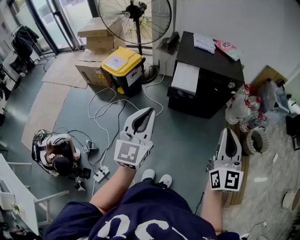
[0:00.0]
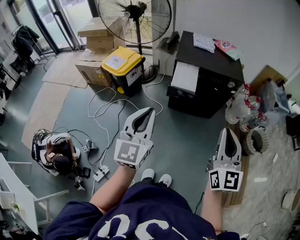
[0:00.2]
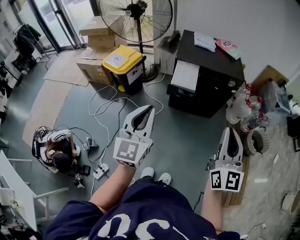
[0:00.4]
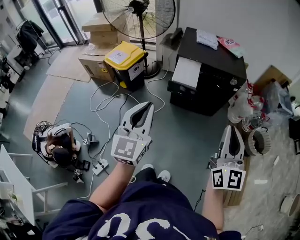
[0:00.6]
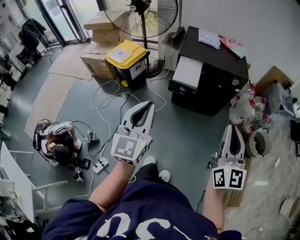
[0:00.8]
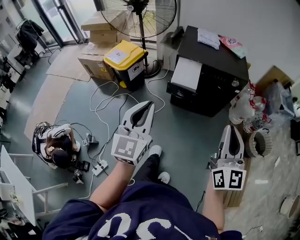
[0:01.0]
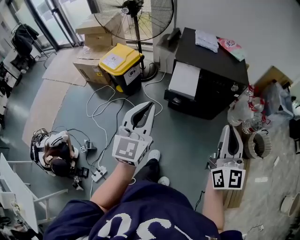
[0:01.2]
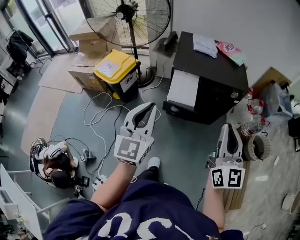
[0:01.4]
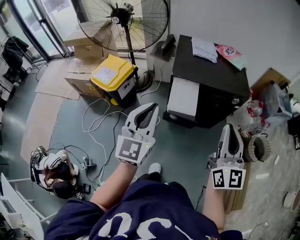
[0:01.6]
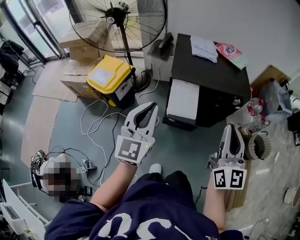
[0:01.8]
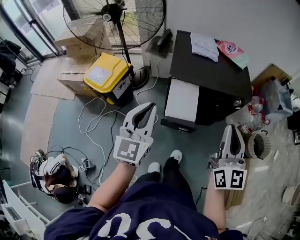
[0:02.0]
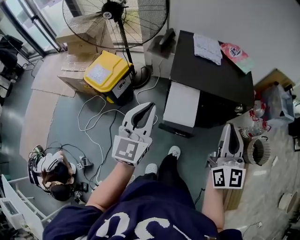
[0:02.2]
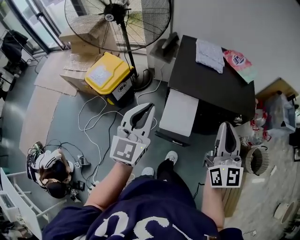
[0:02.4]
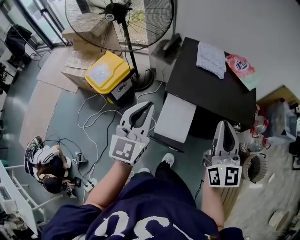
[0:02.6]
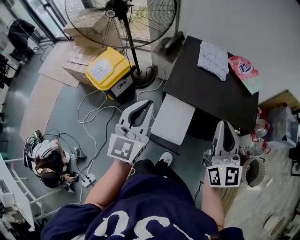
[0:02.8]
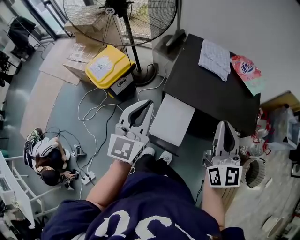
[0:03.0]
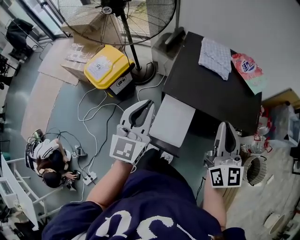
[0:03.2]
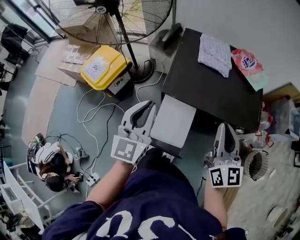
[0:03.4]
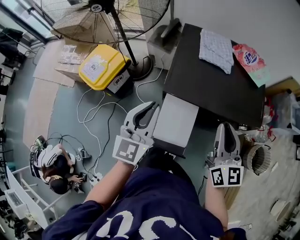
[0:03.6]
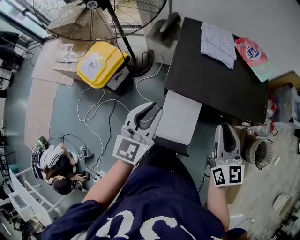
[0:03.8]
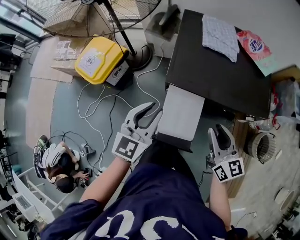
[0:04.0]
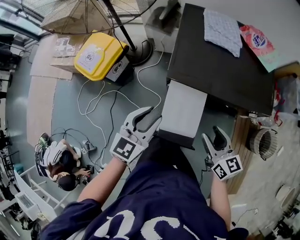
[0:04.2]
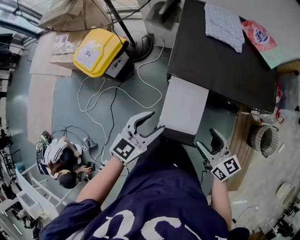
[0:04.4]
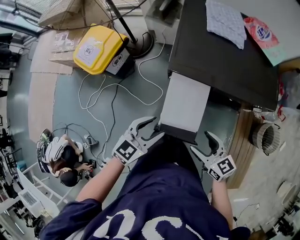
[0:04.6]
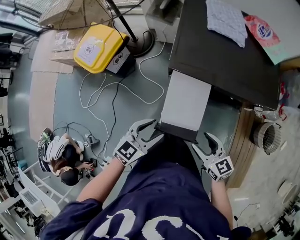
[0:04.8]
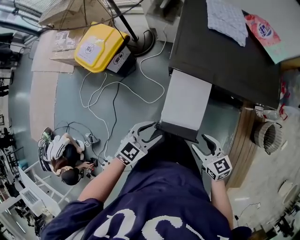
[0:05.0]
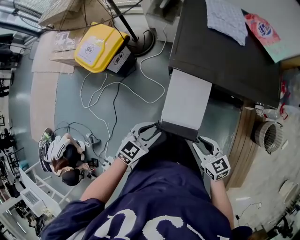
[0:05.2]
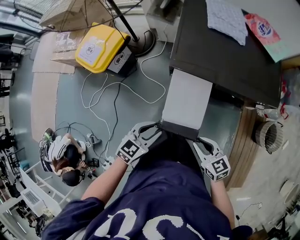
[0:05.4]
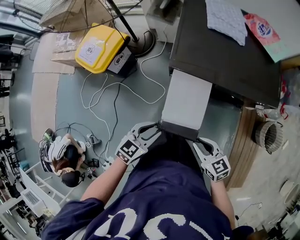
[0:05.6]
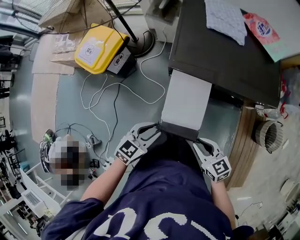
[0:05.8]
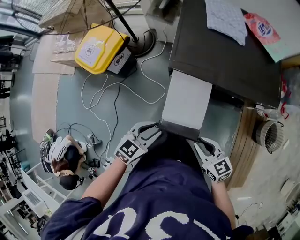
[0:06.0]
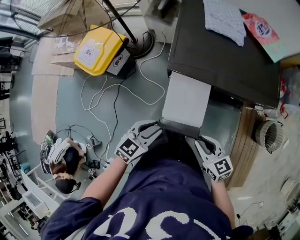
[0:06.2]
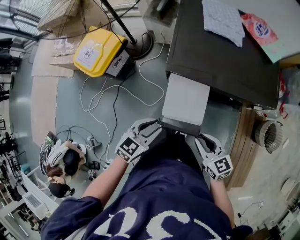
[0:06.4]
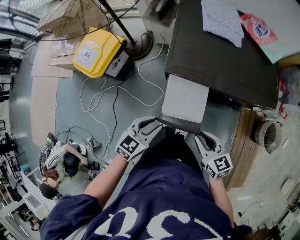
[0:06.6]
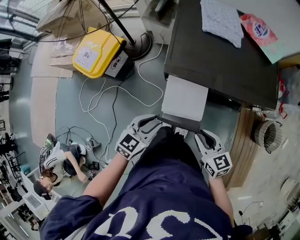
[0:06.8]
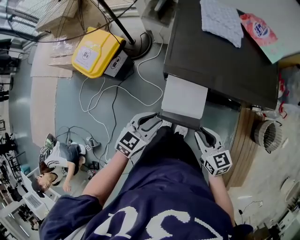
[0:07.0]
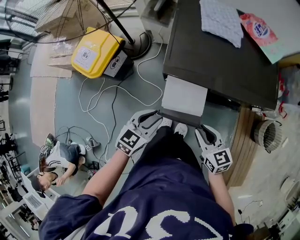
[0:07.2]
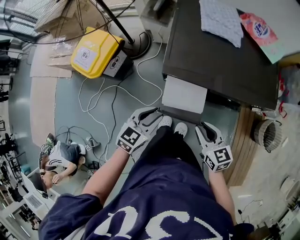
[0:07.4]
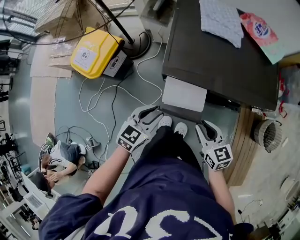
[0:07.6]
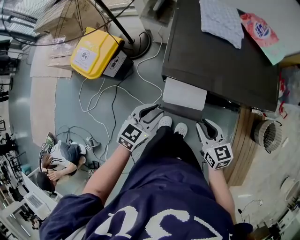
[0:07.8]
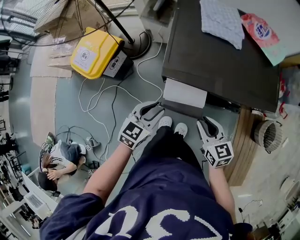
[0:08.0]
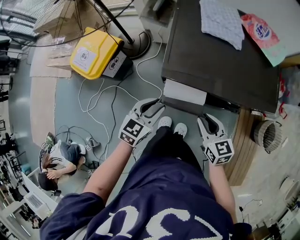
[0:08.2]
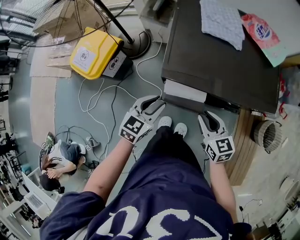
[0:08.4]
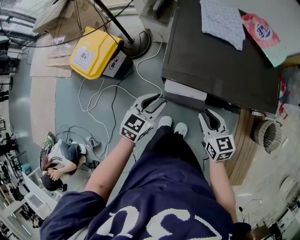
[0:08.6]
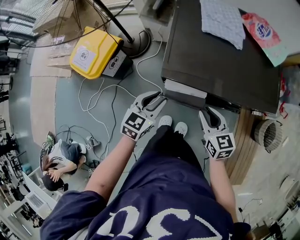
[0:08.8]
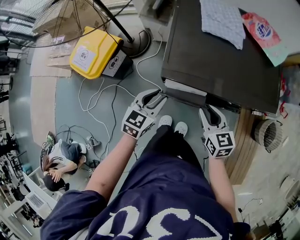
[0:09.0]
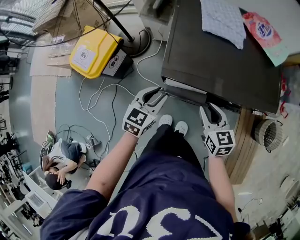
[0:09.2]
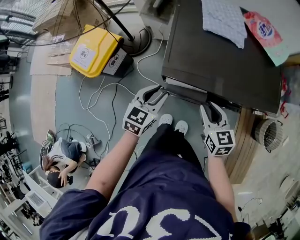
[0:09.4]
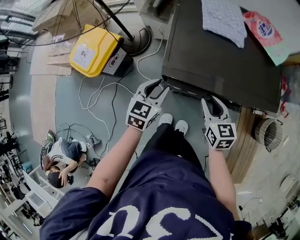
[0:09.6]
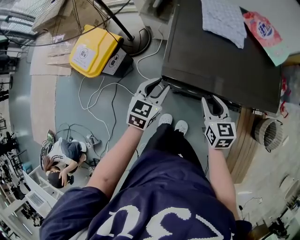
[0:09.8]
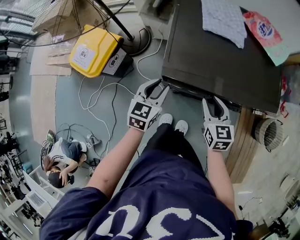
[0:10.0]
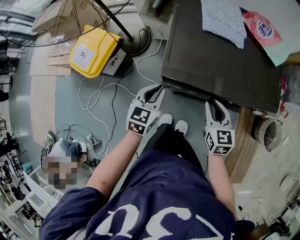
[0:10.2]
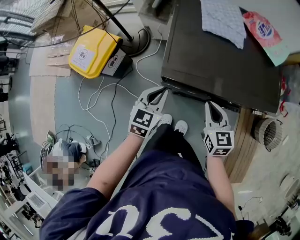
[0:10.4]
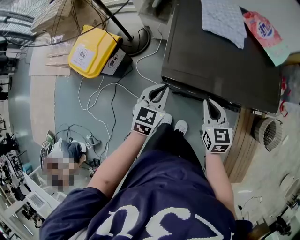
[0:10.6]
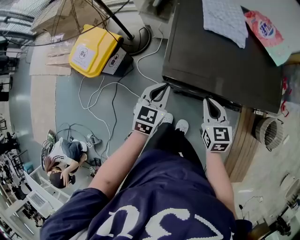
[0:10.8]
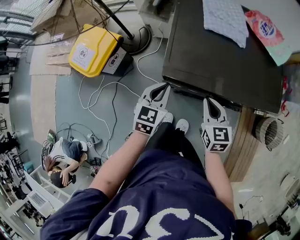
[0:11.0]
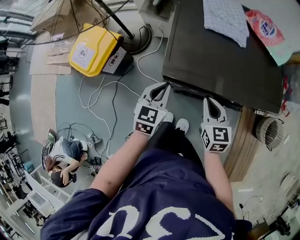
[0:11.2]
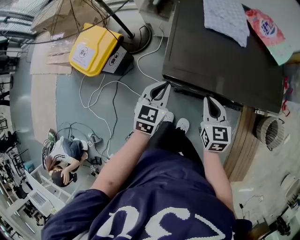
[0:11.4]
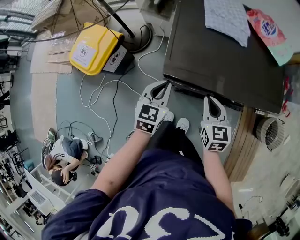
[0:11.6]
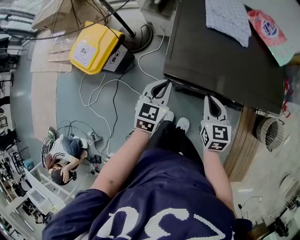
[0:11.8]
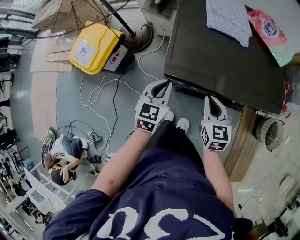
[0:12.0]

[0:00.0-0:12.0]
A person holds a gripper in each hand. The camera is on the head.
0:00.0 to 0:01.6: Both grippers travel together forward, some 25 cm.
0:01.6 to 0:03.0: The two grippers go some 30 cm forward.
0:03.0 to 0:04.4: Both grippers move downward, about 20 cm. The right gripper turns by approximately 40 degrees, and opens its fingers, while the left gripper rotates approximately 40 degrees, and opens its fingers.
0:04.4 to 0:06.0: The right gripper heads backward and downward, covering about 10 cm, and closes up. Meanwhile the left gripper heads downward and backward, covering some 10 cm, and closes up.
0:06.0 to 0:07.6: Both grippers move forward, roughly 10 cm.
0:07.6 to 0:09.0: Both grippers move forward, about 10 cm.
0:09.0 to 0:10.4: The left gripper closes its fingers.
0:10.4 to 0:12.0: The grippers make only small movements.

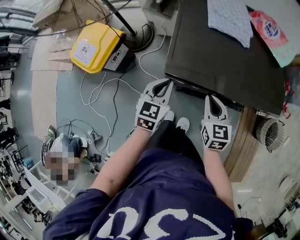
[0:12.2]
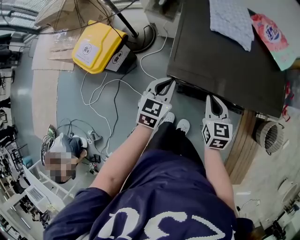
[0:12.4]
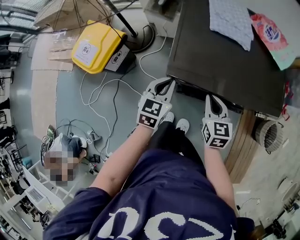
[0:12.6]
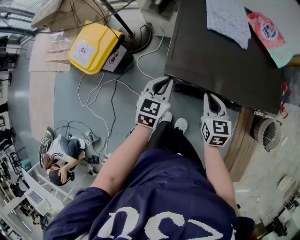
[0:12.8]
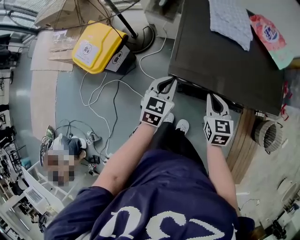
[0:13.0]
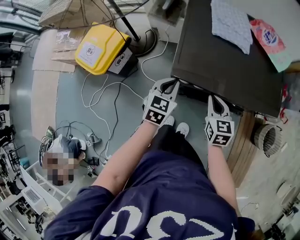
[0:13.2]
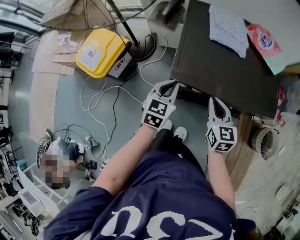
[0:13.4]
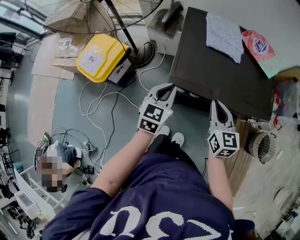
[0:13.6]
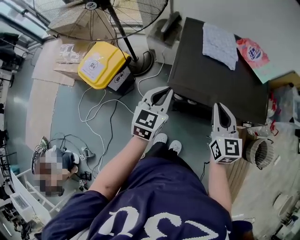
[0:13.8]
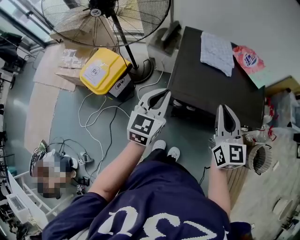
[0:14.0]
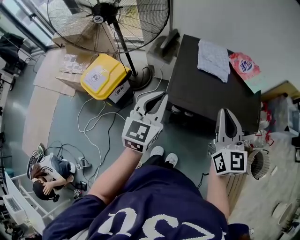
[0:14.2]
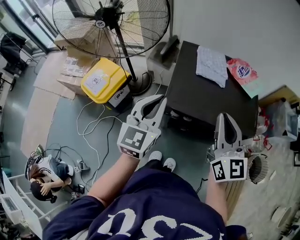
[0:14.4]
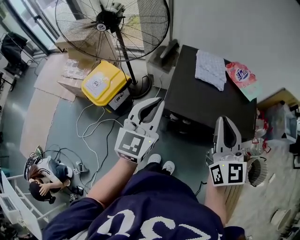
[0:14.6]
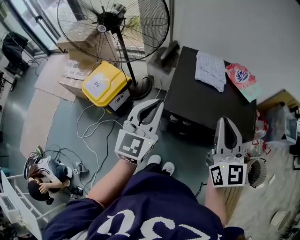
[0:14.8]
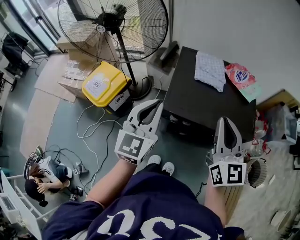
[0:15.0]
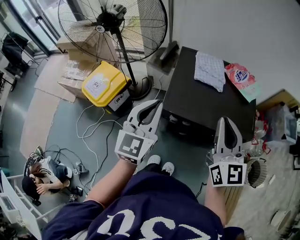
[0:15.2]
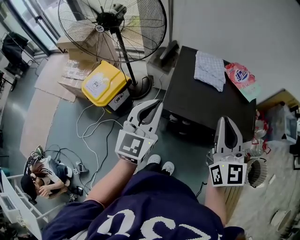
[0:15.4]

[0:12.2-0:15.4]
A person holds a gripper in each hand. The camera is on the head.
0:12.2 to 0:13.8: The grippers both shift upward by approximately 15 cm.
0:13.8 to 0:15.4: Both grippers move upward, roughly 15 cm.

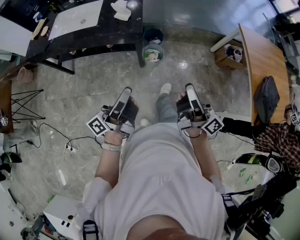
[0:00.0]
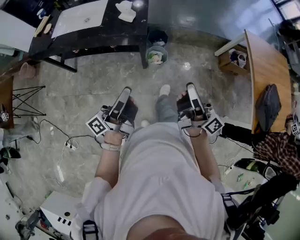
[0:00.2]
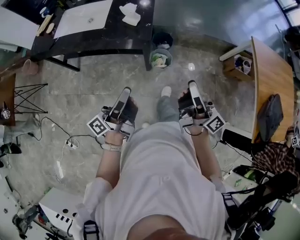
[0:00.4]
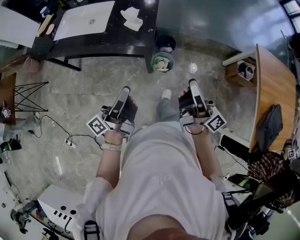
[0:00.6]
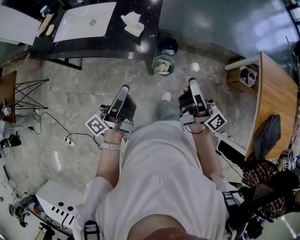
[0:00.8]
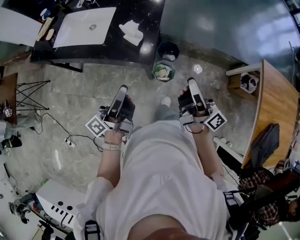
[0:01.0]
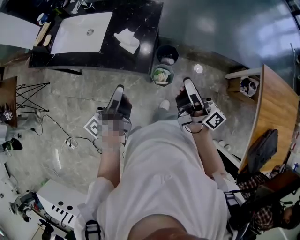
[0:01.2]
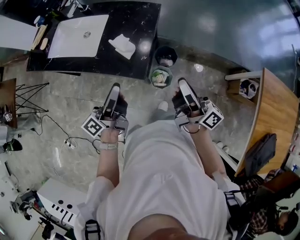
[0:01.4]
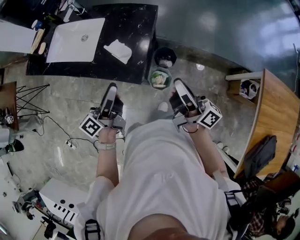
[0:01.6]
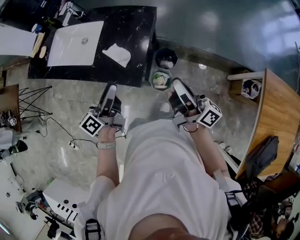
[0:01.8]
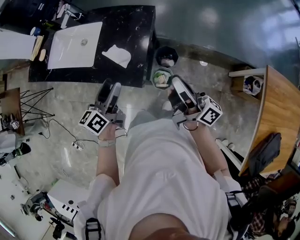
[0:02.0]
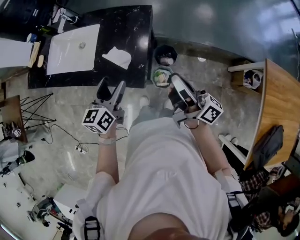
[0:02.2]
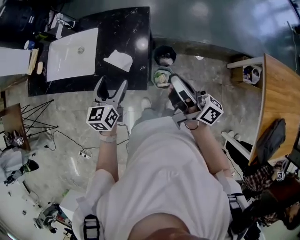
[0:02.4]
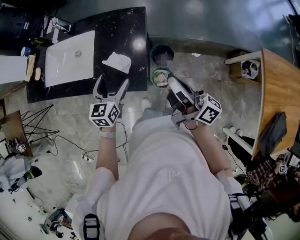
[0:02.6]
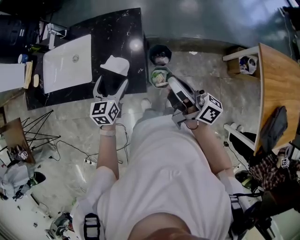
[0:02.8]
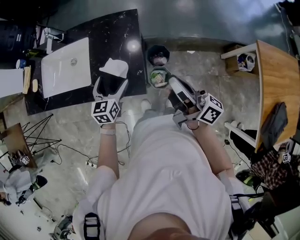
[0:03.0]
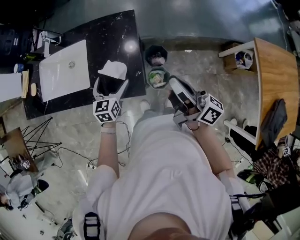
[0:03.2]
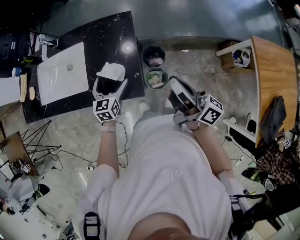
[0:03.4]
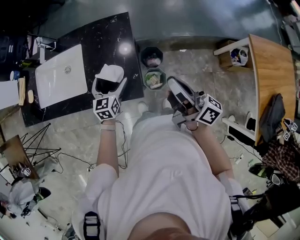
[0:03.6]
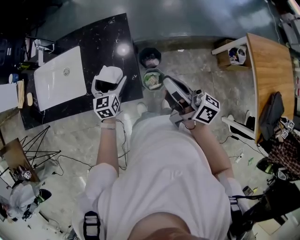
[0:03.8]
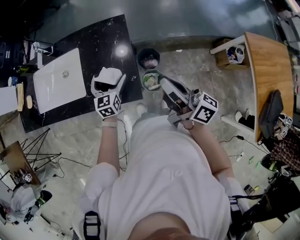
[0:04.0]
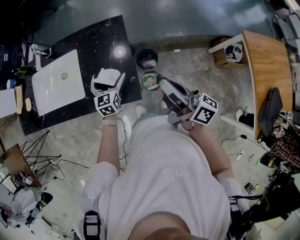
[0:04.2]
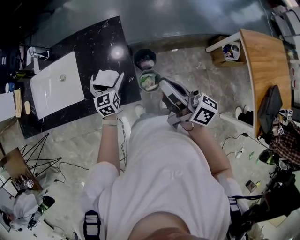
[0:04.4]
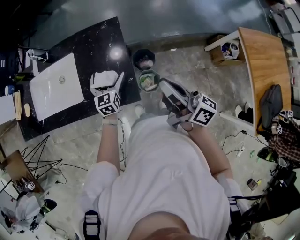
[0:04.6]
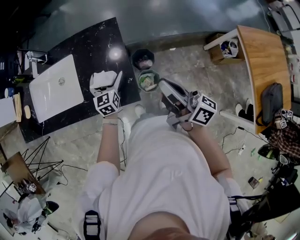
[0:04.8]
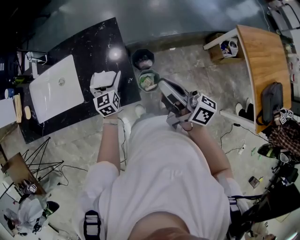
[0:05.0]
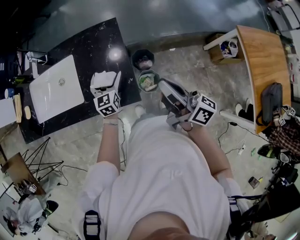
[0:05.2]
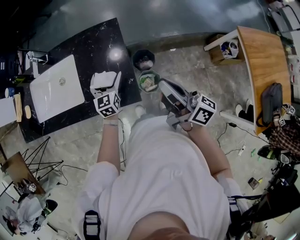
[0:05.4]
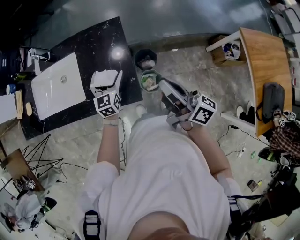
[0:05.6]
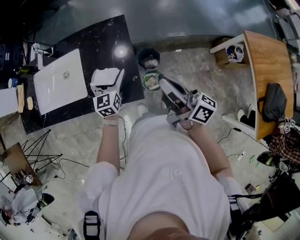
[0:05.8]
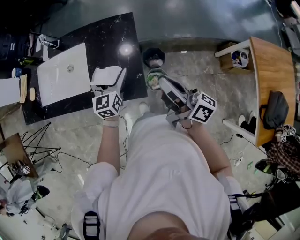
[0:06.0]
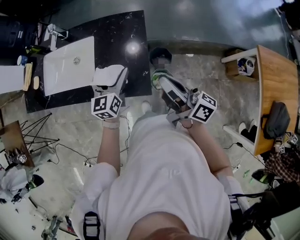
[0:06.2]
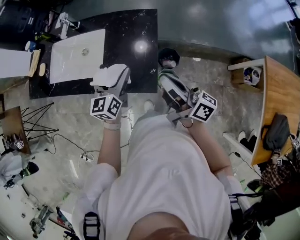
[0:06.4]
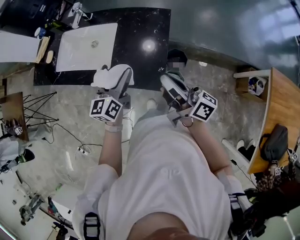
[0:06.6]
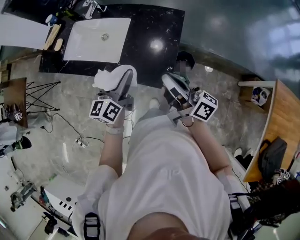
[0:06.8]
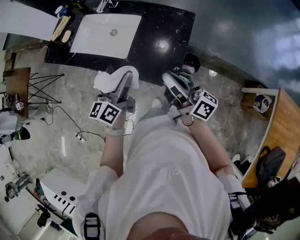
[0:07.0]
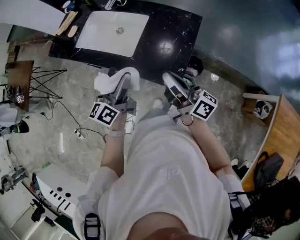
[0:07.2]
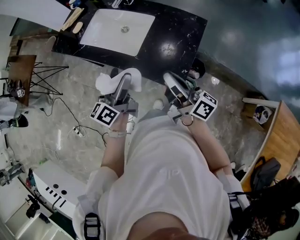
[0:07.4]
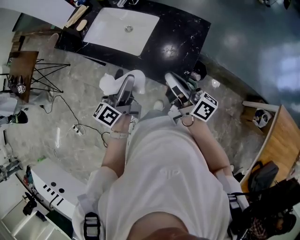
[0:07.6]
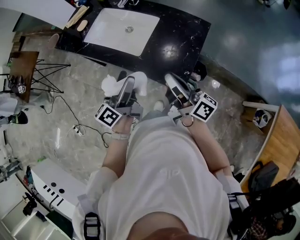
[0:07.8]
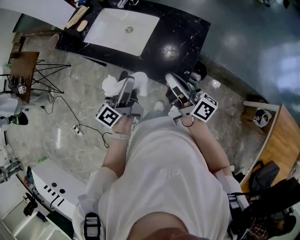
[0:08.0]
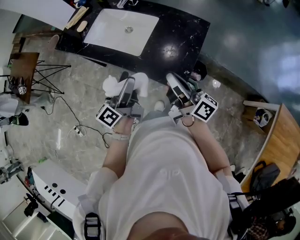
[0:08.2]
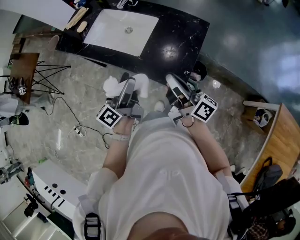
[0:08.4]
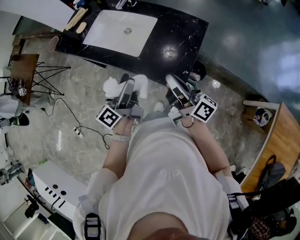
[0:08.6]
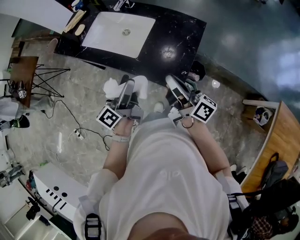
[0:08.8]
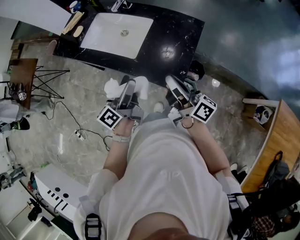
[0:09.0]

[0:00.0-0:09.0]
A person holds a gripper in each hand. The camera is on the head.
0:00.0 to 0:01.6: The two grippers go approximately 40 cm forward. The left gripper changes its angle by about 30 degrees.
0:01.6 to 0:03.0: The right gripper shifts by some 5 cm; the left gripper heads forward and downward, covering roughly 15 cm, rolls clockwise, seen from behind, by about 50 degrees, and opens its fingers.
0:03.0 to 0:04.4: The left gripper heads forward, covering some 5 cm.
0:04.4 to 0:06.0: The left gripper is displaced upward by roughly 10 cm.
0:06.0 to 0:07.6: The right gripper moves to the left, roughly 15 cm, and changes its angle by some 30 degrees; the left gripper moves to the left, backward and upward, some 25 cm, and turns by some 50 degrees.
0:07.6 to 0:09.0: The grippers stay close to where they were, moving slightly.
